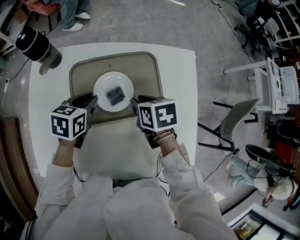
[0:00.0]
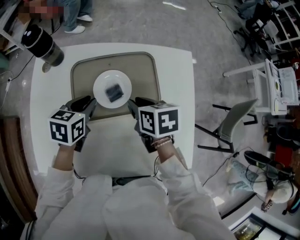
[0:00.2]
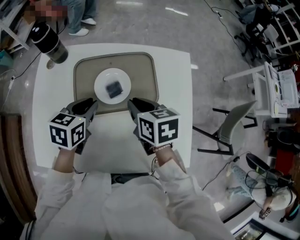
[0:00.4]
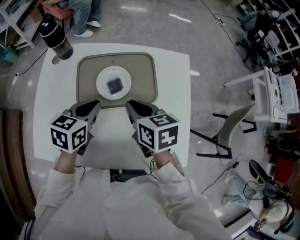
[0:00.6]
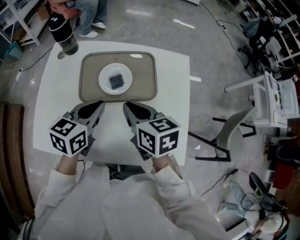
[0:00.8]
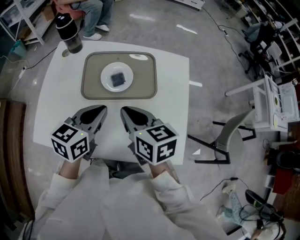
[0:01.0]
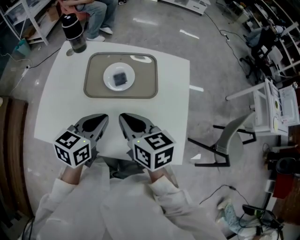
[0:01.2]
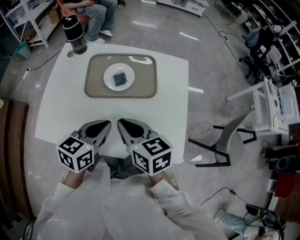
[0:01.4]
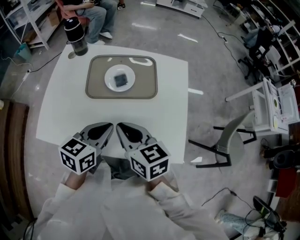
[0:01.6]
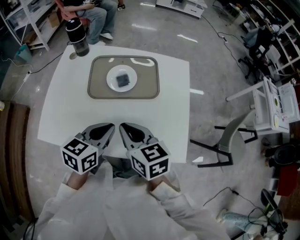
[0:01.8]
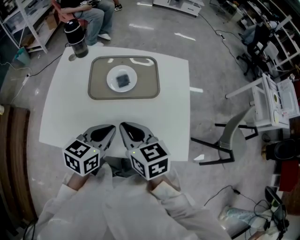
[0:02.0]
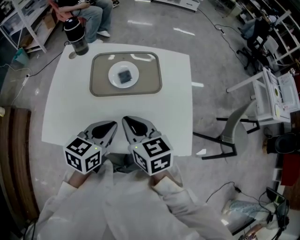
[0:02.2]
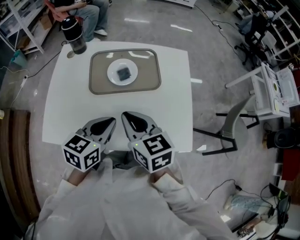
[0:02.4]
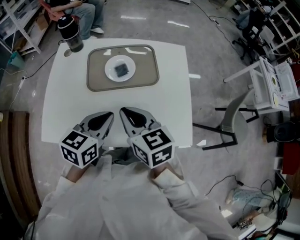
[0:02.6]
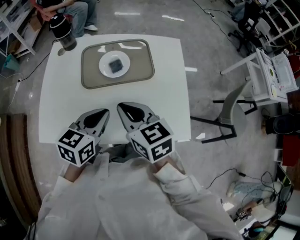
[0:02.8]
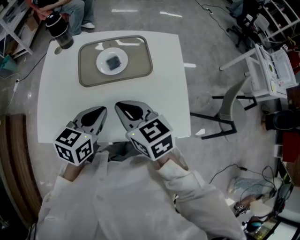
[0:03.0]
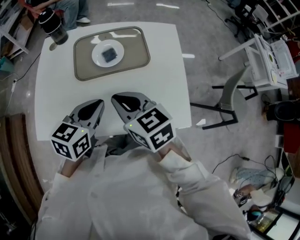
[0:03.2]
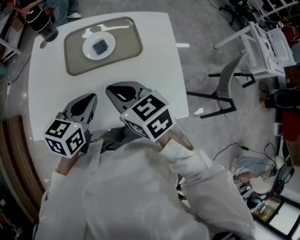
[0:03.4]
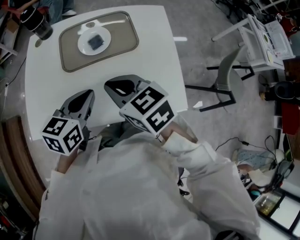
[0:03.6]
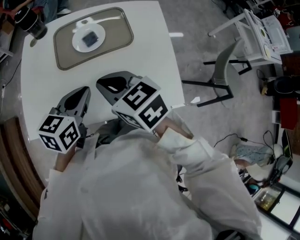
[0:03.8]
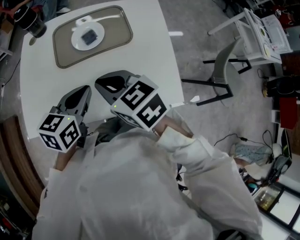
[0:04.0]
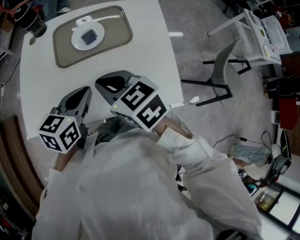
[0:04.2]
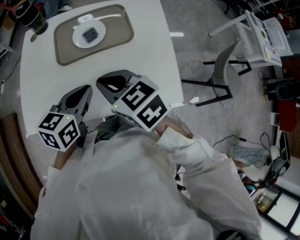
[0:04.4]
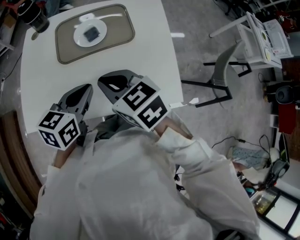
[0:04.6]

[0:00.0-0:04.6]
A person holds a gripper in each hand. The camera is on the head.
0:00.0 to 0:01.6: Both grippers travel together backward and upward, roughly 30 cm. The right gripper tilts its fingers some 30 degrees upward, and closes up; the left gripper turns by about 20 degrees.
0:01.6 to 0:04.6: The grippers move only a little.

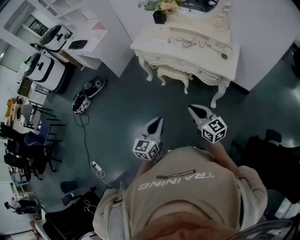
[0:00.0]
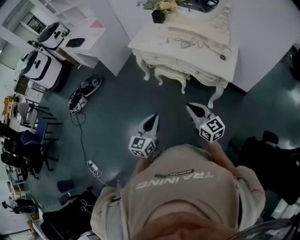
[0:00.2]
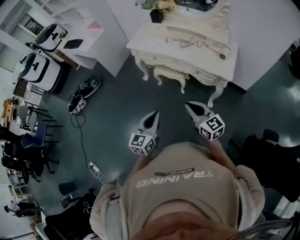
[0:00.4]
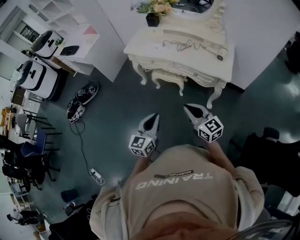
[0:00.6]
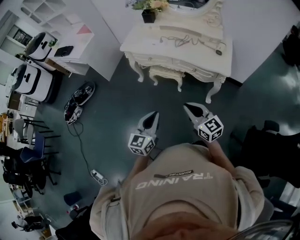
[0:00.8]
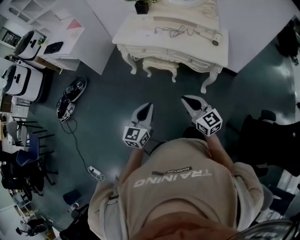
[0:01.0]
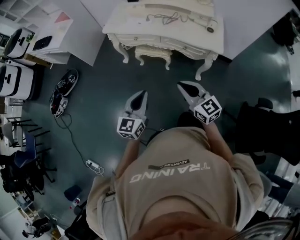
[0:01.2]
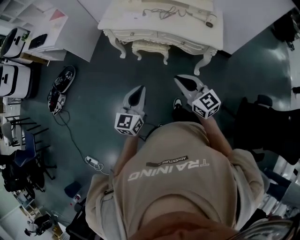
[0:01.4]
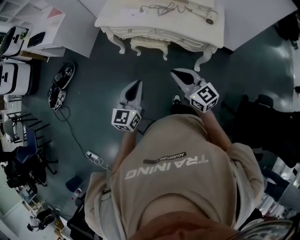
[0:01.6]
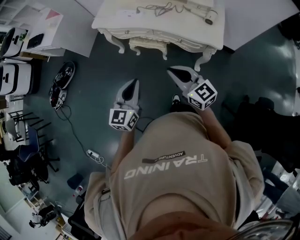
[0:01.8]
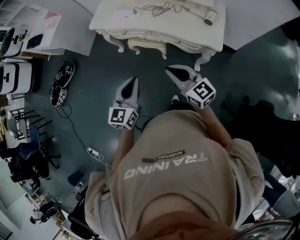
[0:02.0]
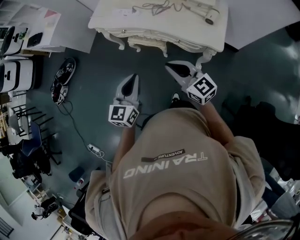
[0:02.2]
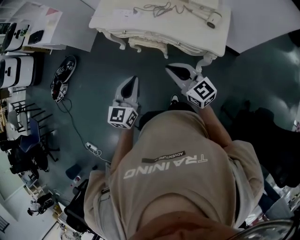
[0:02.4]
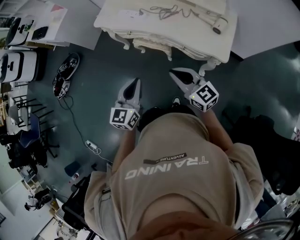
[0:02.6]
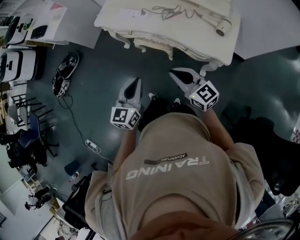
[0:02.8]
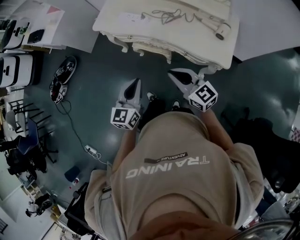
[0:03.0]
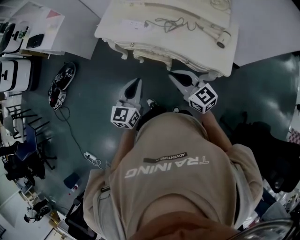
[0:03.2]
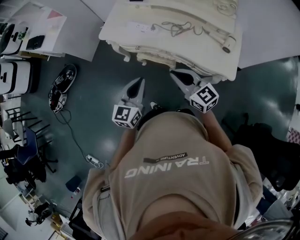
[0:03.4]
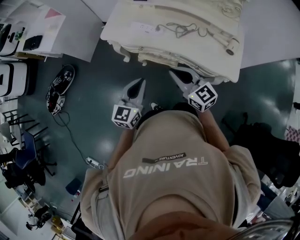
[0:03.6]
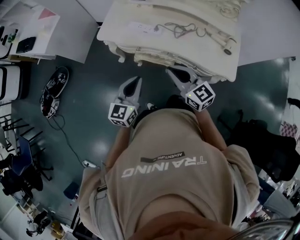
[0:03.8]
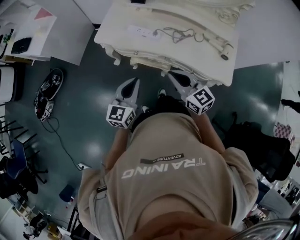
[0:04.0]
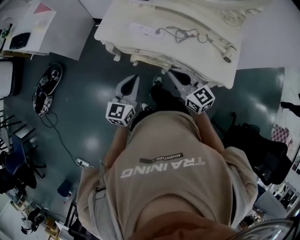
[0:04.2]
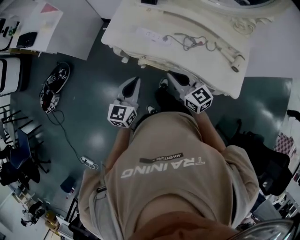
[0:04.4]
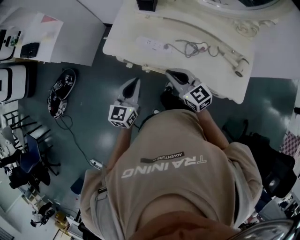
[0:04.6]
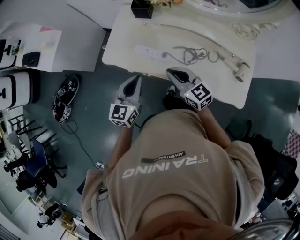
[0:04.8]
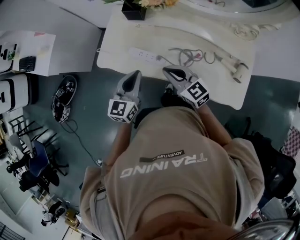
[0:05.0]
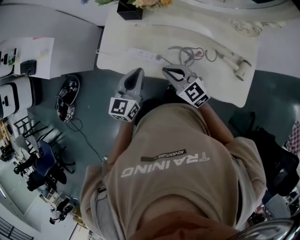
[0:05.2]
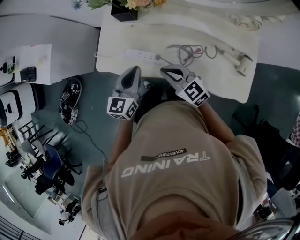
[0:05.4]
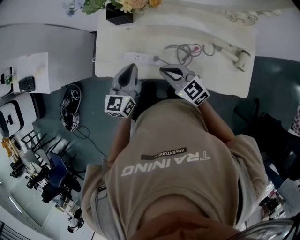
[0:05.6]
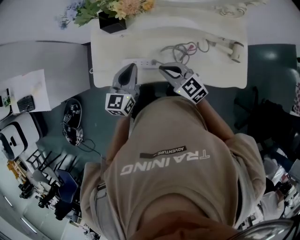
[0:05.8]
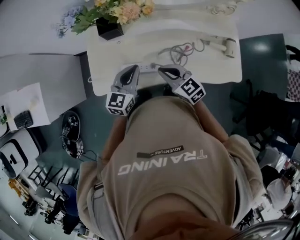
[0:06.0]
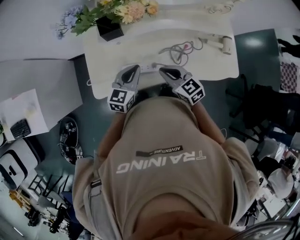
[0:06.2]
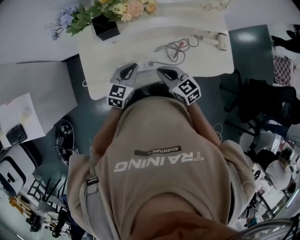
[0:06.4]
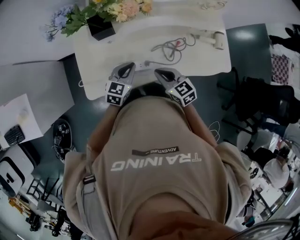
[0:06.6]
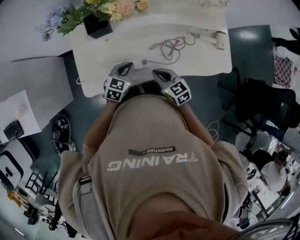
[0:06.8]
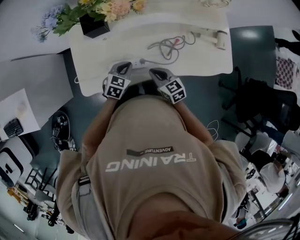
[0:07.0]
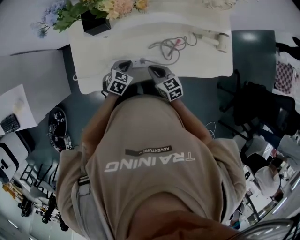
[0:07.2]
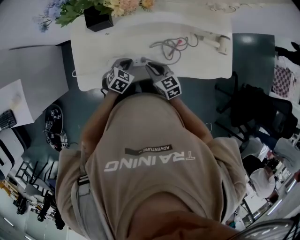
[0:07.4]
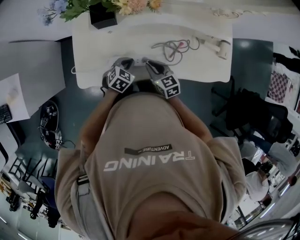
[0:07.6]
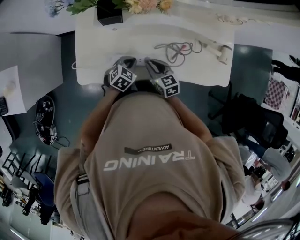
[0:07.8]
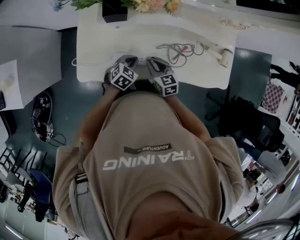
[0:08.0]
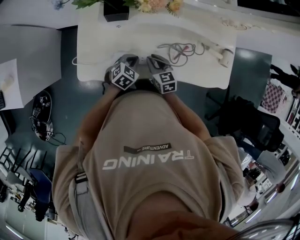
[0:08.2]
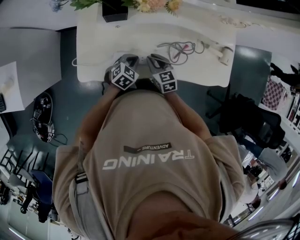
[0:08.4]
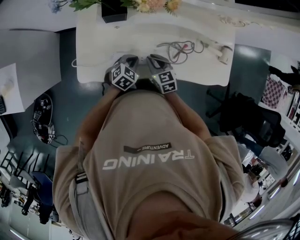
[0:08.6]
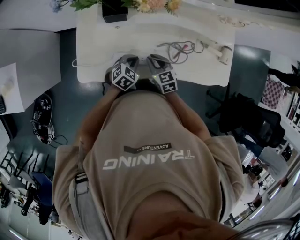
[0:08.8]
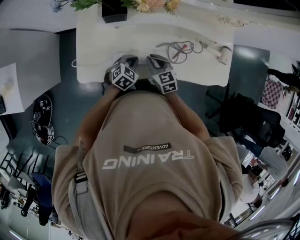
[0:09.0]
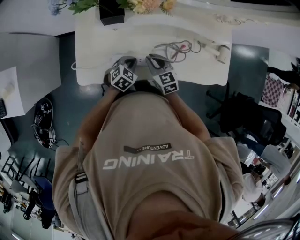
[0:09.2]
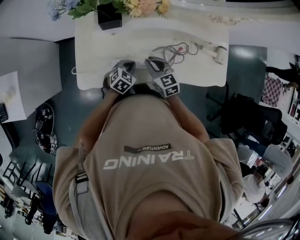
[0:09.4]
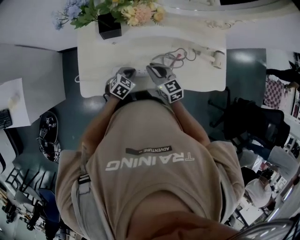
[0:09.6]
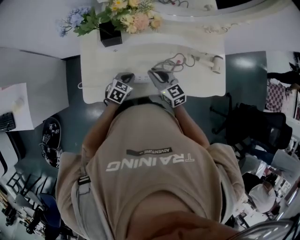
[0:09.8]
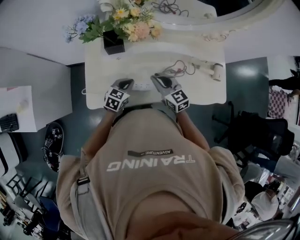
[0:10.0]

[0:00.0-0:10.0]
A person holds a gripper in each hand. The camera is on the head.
0:00.0 to 0:01.4: Both grippers move forward and to the left, some 15 cm.
0:01.4 to 0:02.8: Both grippers move forward and to the right, approximately 20 cm.
0:02.8 to 0:04.2: Both grippers travel together forward and to the left, approximately 25 cm.
0:04.2 to 0:05.8: Both grippers travel together forward, some 30 cm.
0:05.8 to 0:07.2: Both grippers move downward, some 15 cm. The left gripper points its fingers roughly 30 degrees further downward. Meanwhile the right gripper rotates approximately 30 degrees.
0:07.2 to 0:08.6: The right gripper moves some 5 cm.
0:08.6 to 0:10.0: The right gripper is displaced upward by approximately 10 cm. The left gripper goes approximately 5 cm upward.

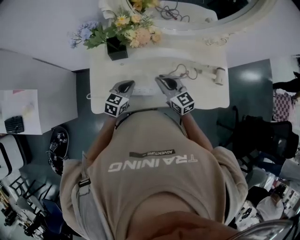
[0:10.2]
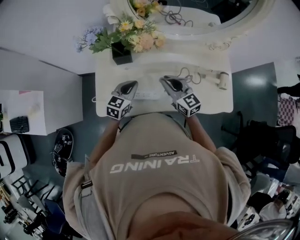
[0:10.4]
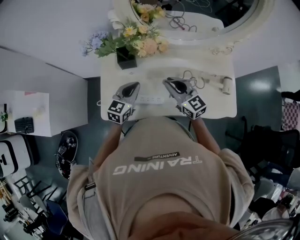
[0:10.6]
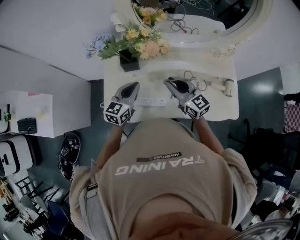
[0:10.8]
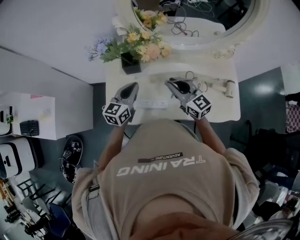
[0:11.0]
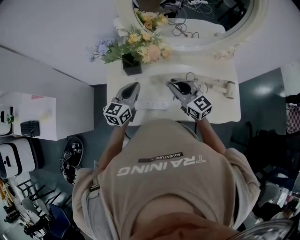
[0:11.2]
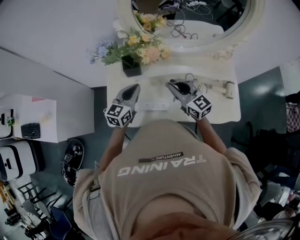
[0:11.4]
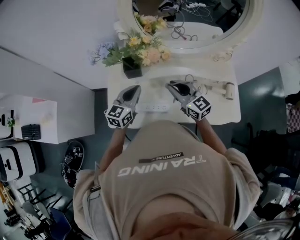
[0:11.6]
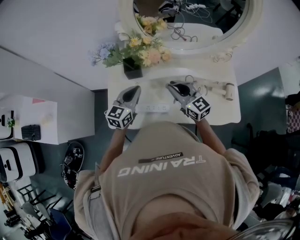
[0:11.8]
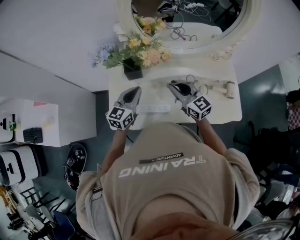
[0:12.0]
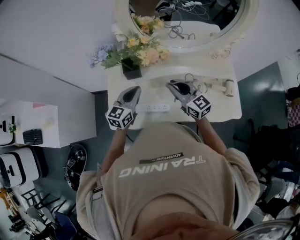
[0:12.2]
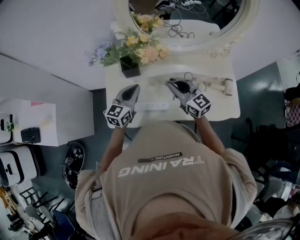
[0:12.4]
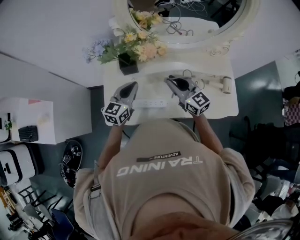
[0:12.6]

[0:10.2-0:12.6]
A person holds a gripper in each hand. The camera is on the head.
0:10.2 to 0:11.4: The grippers both shift upward by about 10 cm. The left gripper changes its angle by approximately 20 degrees.
0:11.4 to 0:12.6: The two grippers keep their place.

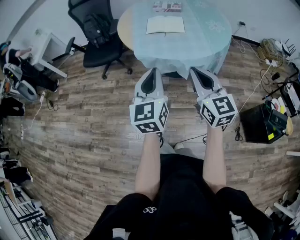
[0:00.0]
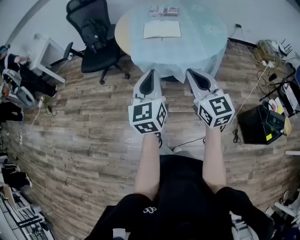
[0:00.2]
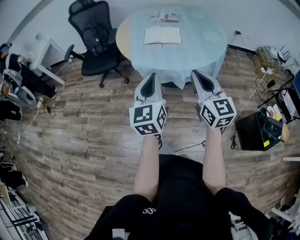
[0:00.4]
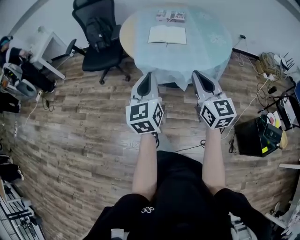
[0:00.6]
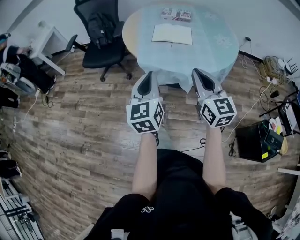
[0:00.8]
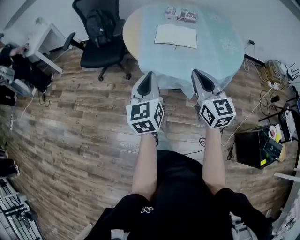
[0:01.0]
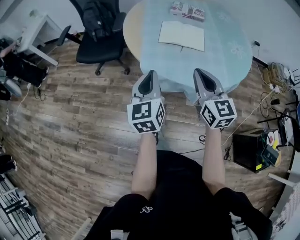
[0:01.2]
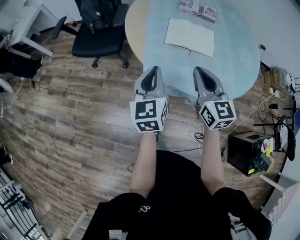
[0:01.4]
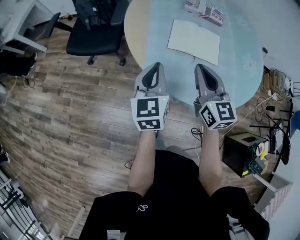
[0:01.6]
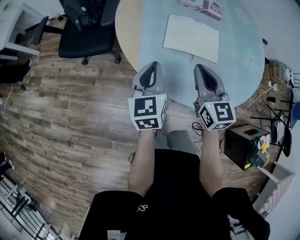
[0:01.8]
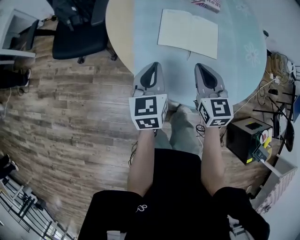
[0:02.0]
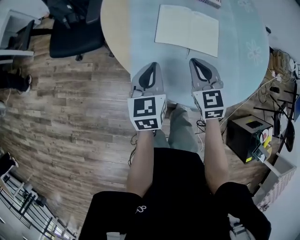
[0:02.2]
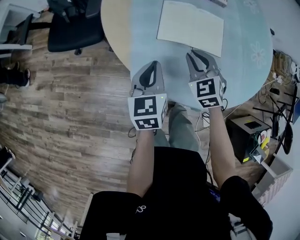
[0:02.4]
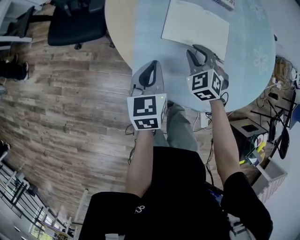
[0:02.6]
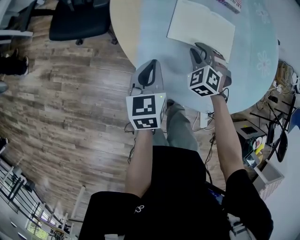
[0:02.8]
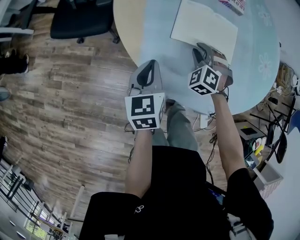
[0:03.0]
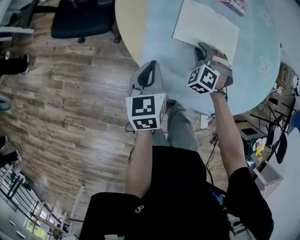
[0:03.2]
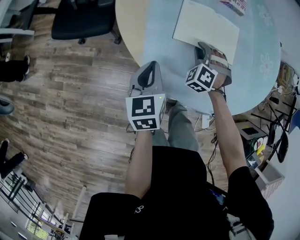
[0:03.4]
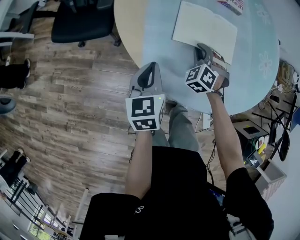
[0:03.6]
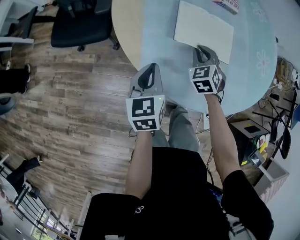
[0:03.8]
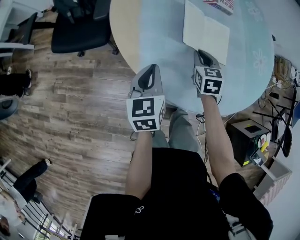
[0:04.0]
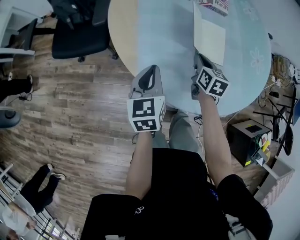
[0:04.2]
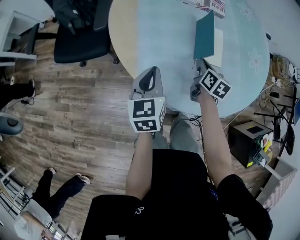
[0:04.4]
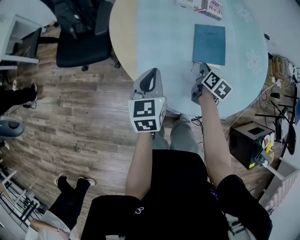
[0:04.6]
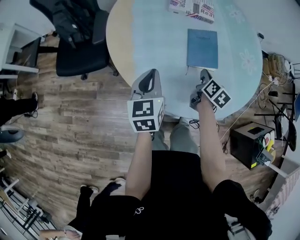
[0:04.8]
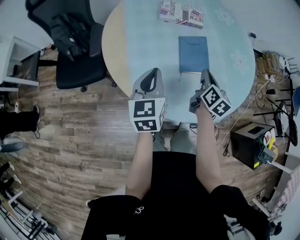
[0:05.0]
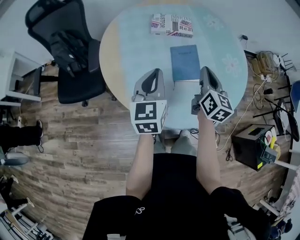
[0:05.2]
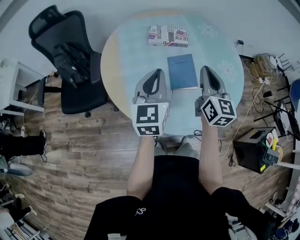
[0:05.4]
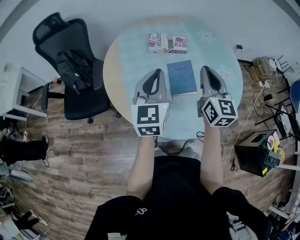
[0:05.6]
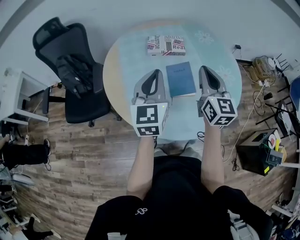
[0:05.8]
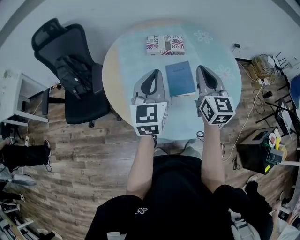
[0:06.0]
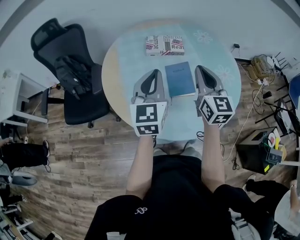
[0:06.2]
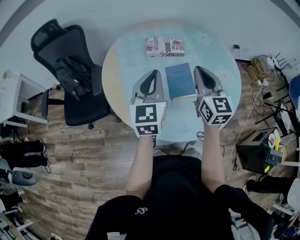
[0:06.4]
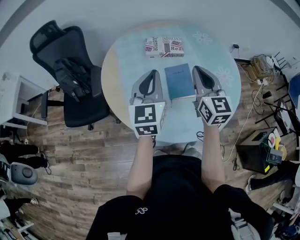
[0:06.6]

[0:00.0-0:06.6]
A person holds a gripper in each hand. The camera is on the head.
0:00.0 to 0:01.6: Both grippers move forward, some 40 cm.
0:01.6 to 0:03.2: The right gripper moves downward and forward, roughly 30 cm, twists approximately 70 degrees counterclockwise, seen from behind, and opens, while the left gripper goes some 15 cm downward and forward.
0:03.2 to 0:05.0: The right gripper heads to the right and upward, covering some 20 cm, rotates around the line of its fingers by some 110 degrees, clockwise from behind, and closes its fingers. Meanwhile the left gripper is displaced upward, to the right and forward by roughly 15 cm, and turns by approximately 20 degrees.
0:05.0 to 0:06.6: Both grippers move upward, about 15 cm. The right gripper rotates about 40 degrees.
